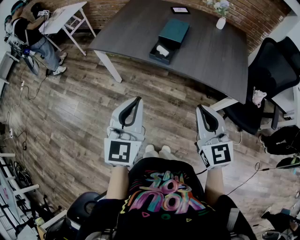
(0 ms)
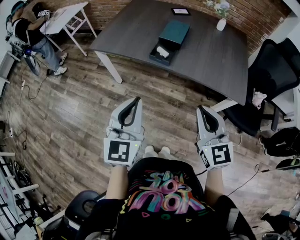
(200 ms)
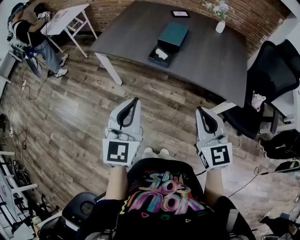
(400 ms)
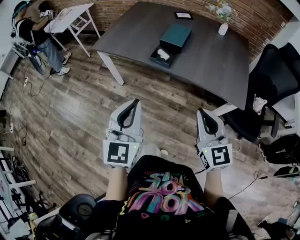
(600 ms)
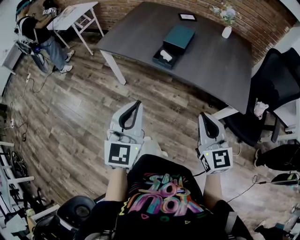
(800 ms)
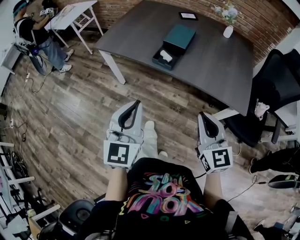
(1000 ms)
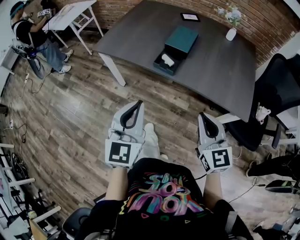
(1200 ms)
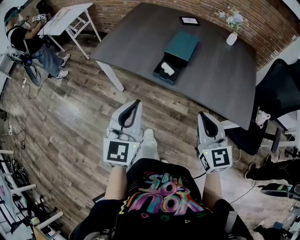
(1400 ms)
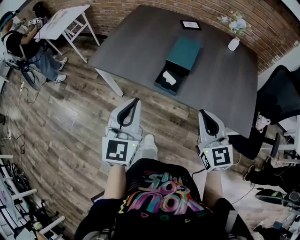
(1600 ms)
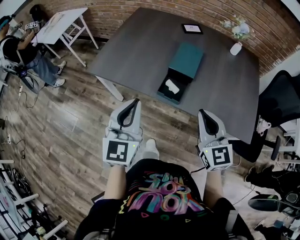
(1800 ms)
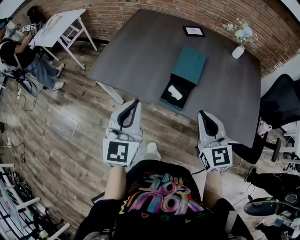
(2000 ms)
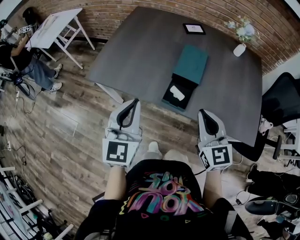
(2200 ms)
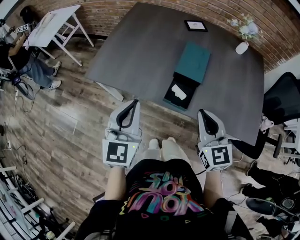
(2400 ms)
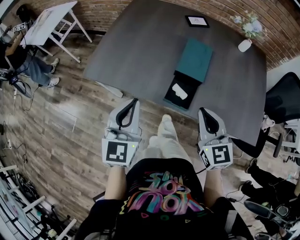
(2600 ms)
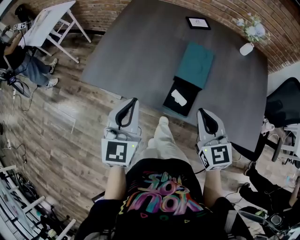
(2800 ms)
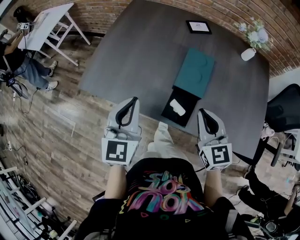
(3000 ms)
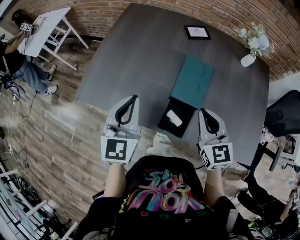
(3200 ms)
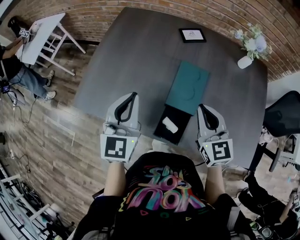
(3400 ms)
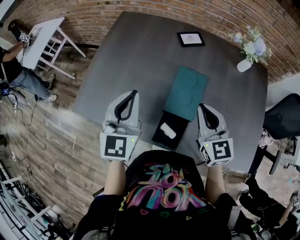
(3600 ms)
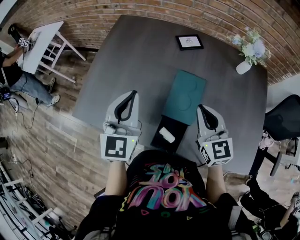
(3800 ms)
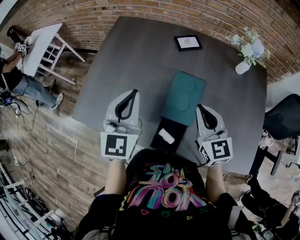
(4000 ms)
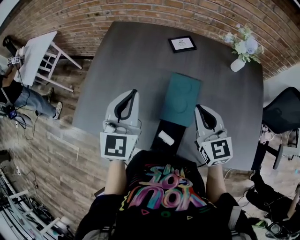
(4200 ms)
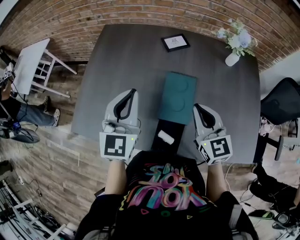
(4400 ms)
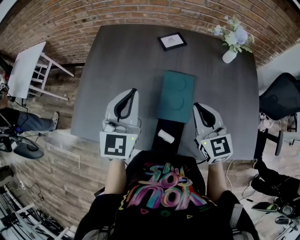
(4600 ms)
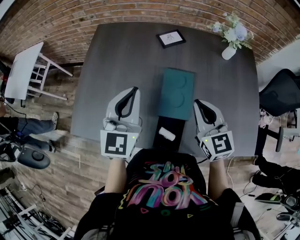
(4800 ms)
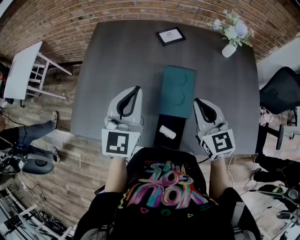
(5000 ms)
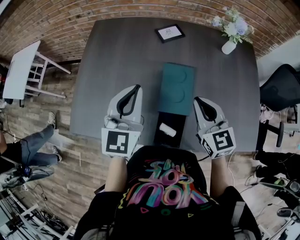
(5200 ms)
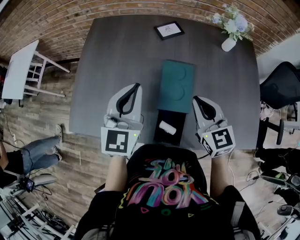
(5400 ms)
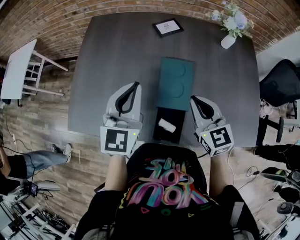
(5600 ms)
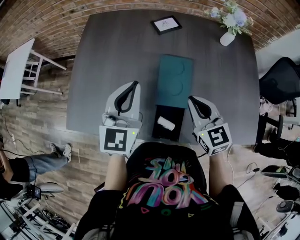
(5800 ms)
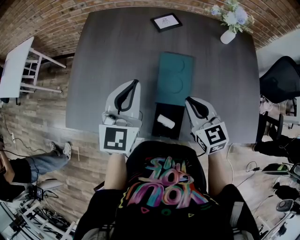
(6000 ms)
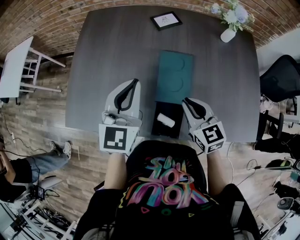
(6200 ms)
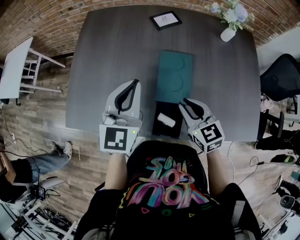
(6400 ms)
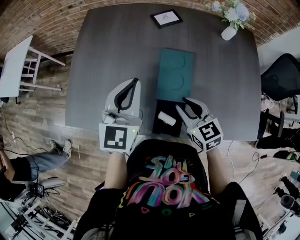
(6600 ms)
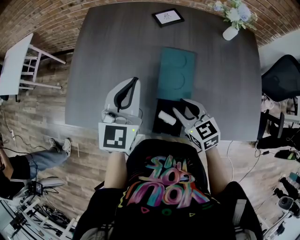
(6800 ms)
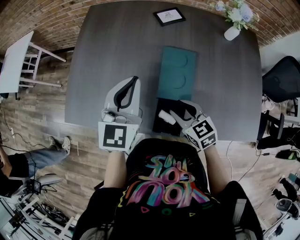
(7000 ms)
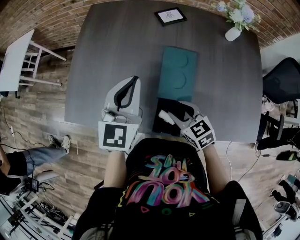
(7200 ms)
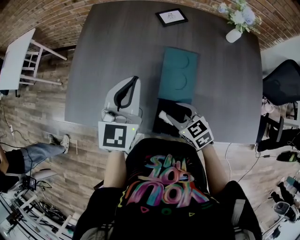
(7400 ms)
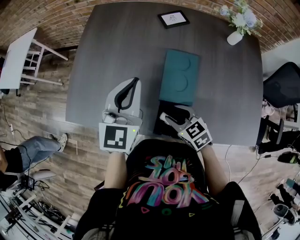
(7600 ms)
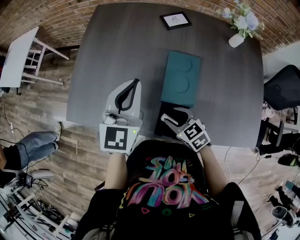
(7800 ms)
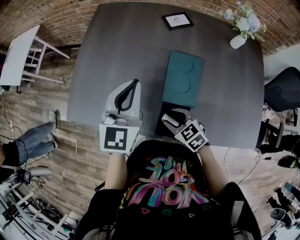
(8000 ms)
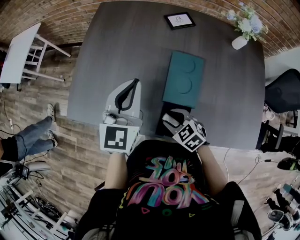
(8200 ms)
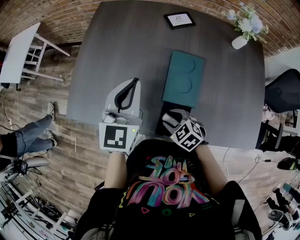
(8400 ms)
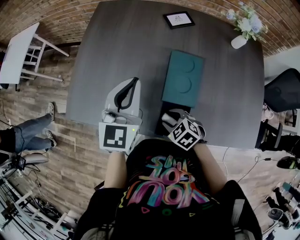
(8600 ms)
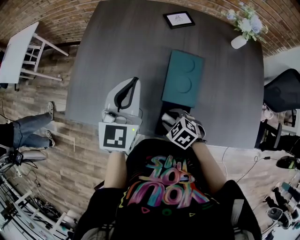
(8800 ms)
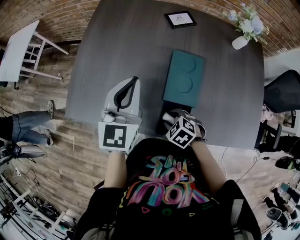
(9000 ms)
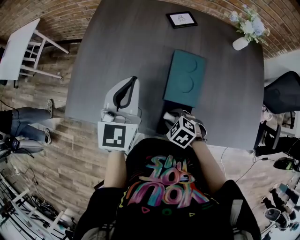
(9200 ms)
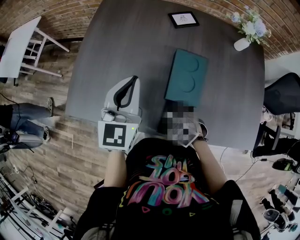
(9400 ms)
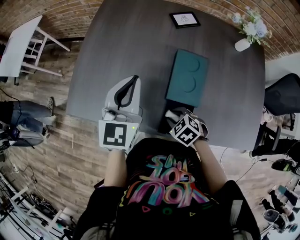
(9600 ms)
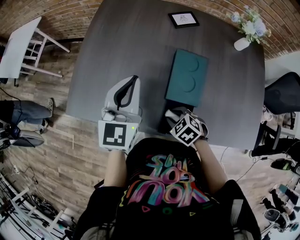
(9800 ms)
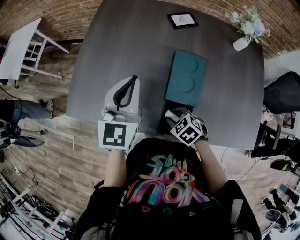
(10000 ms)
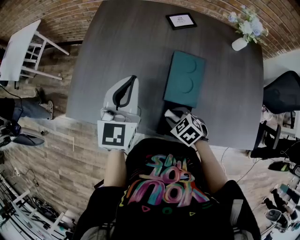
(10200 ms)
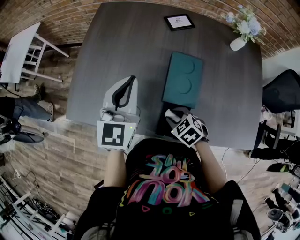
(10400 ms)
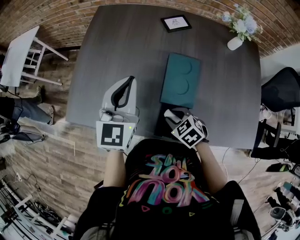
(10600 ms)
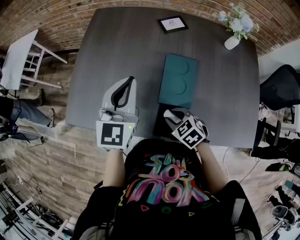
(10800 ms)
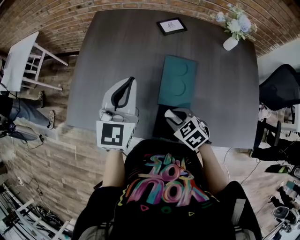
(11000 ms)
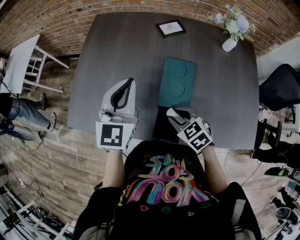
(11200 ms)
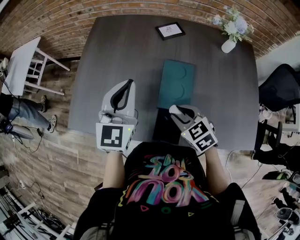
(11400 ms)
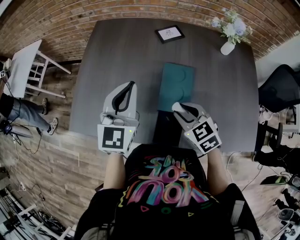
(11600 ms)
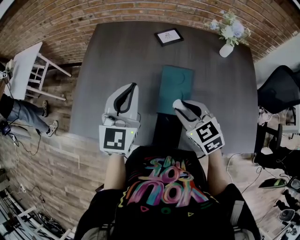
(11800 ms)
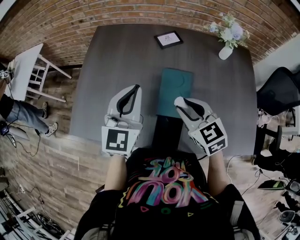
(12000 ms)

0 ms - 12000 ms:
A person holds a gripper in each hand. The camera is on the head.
0 ms - 1600 ms: Both grippers move forward, roughly 20 cm.
1600 ms - 3000 ms: The two grippers go approximately 20 cm forward.
3000 ms - 4400 ms: Both grippers travel together forward and to the right, about 15 cm.
4400 ms - 6000 ms: The right gripper shifts some 5 cm downward.
6000 ms - 7600 ms: The right gripper goes about 15 cm downward and to the left, turns by roughly 30 degrees, and opens.
7600 ms - 9000 ms: The right gripper is displaced downward by some 5 cm, and changes its angle by some 30 degrees.
9000 ms - 10400 ms: The grippers move only a little.
10400 ms - 12000 ms: The right gripper travels upward by some 20 cm, and tips its fingers upward by roughly 30 degrees; the left gripper shifts by some 5 cm.

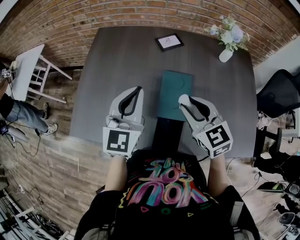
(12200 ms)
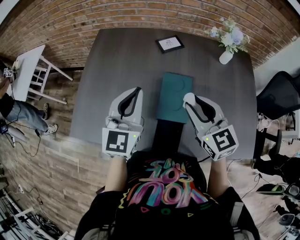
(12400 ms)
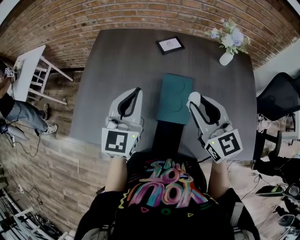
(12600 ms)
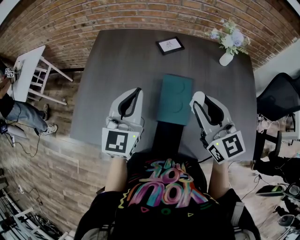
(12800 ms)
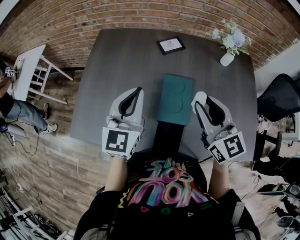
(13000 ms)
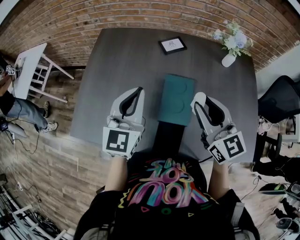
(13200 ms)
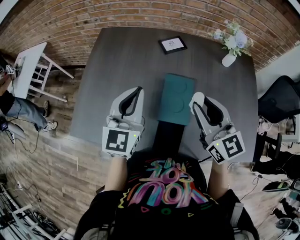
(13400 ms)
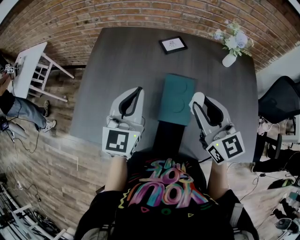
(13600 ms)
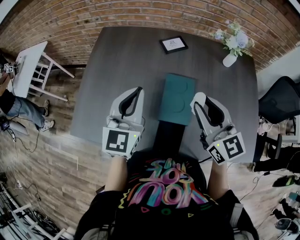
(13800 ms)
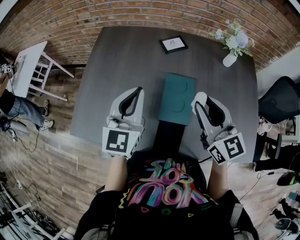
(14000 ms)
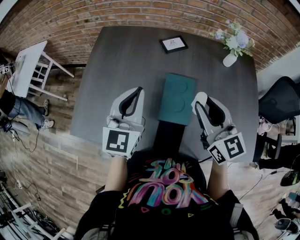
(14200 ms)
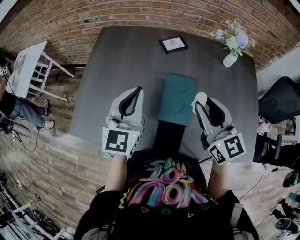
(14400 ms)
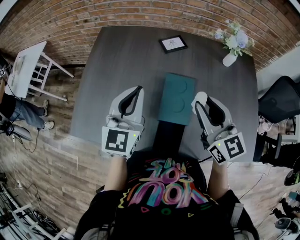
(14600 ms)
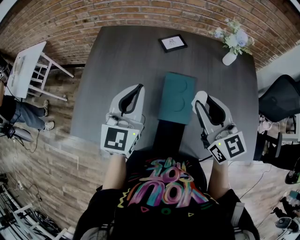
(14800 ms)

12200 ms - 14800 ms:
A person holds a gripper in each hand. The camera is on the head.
12200 ms - 13400 ms: The right gripper travels upward by roughly 5 cm.
13400 ms - 14800 ms: The two grippers keep their place.

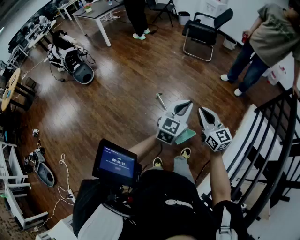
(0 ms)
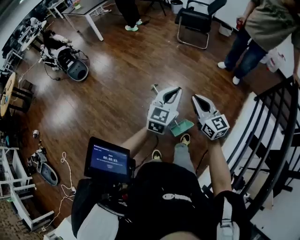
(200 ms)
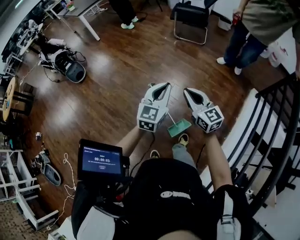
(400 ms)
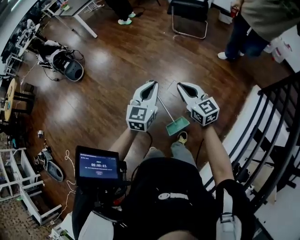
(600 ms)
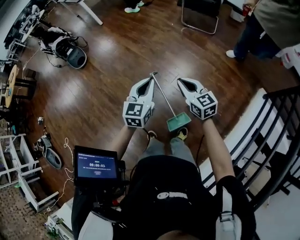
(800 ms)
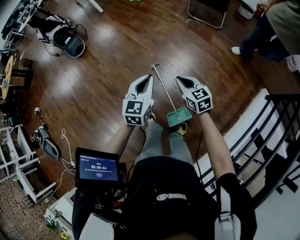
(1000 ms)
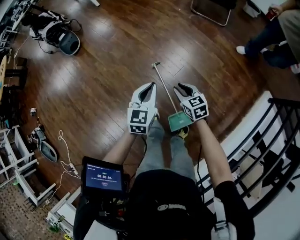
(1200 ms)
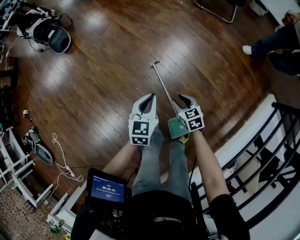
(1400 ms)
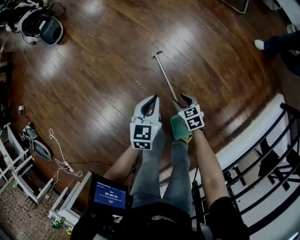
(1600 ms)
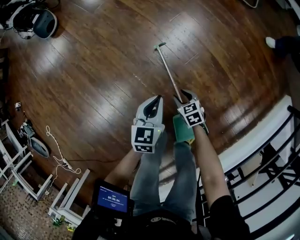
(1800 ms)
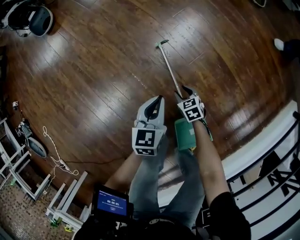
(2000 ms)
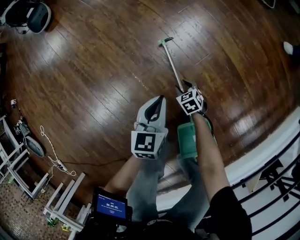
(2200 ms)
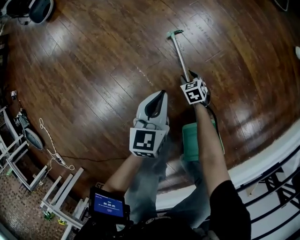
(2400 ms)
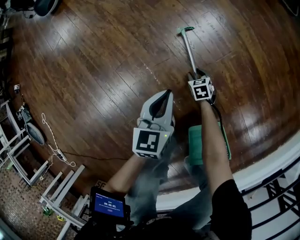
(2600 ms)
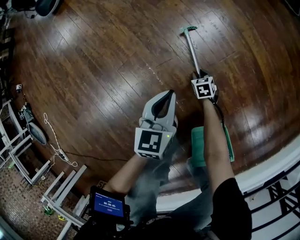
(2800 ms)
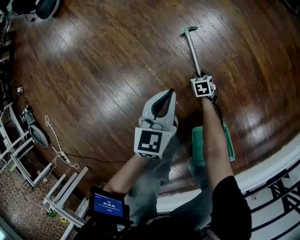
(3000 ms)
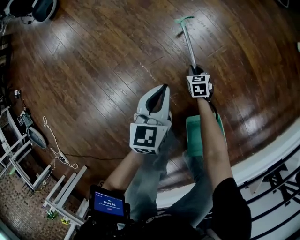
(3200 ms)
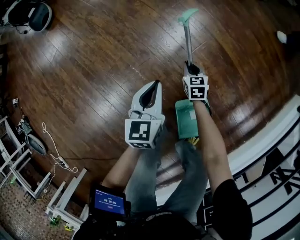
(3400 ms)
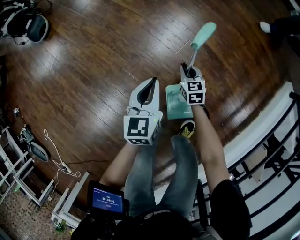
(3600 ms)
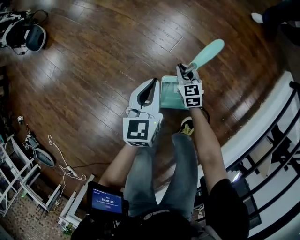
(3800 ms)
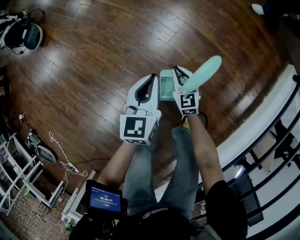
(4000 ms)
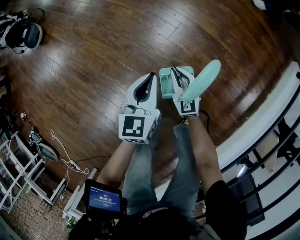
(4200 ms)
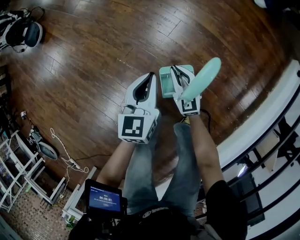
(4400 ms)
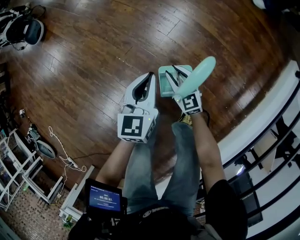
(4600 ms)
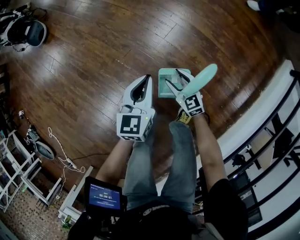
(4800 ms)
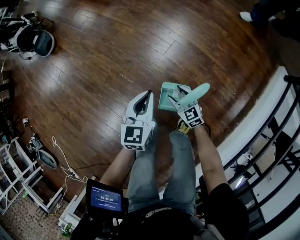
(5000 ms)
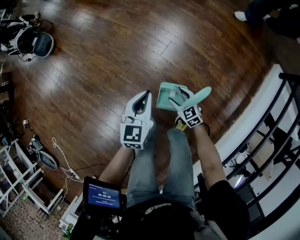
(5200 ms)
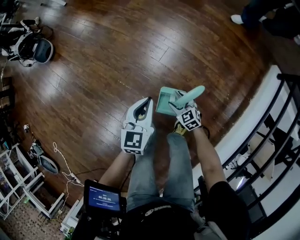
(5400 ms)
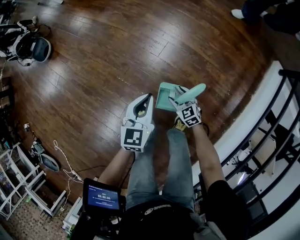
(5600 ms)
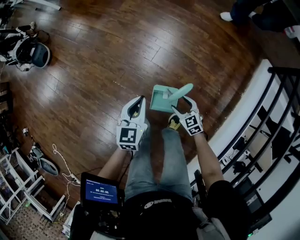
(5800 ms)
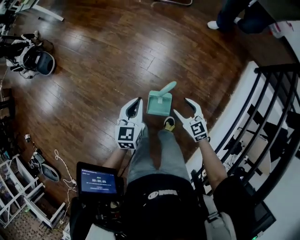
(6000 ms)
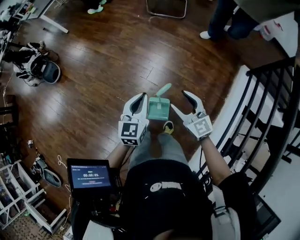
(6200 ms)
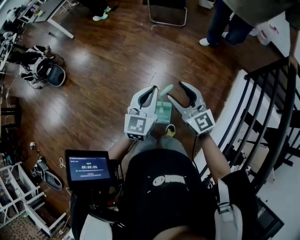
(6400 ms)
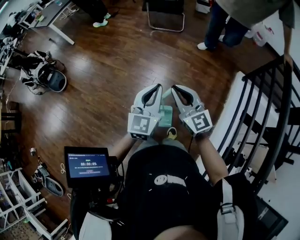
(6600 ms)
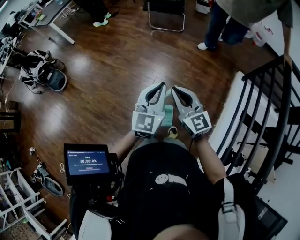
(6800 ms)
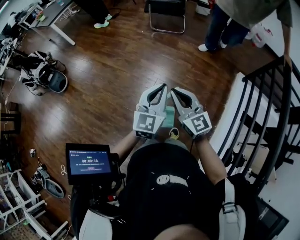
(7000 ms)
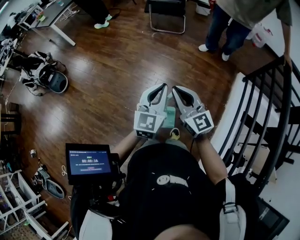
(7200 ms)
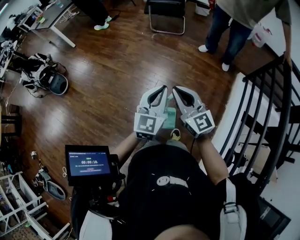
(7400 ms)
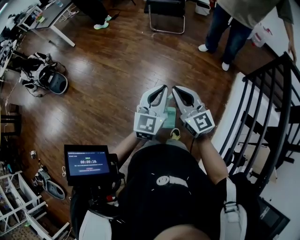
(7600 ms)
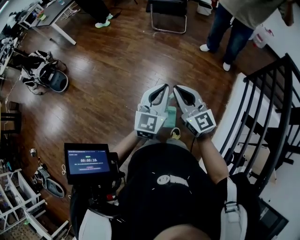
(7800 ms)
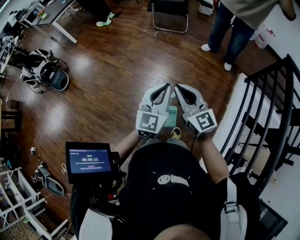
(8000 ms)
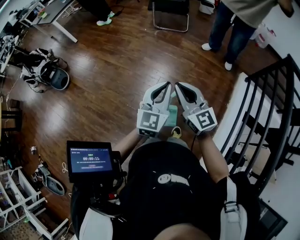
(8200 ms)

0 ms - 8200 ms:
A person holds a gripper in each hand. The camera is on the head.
0 ms - 1600 ms: Both grippers travel together downward, roughly 50 cm. The right gripper tilts its fingers some 50 degrees downward, and opens its fingers, while the left gripper swivels about 40 degrees.
1600 ms - 3200 ms: The right gripper heads downward, covering some 35 cm, and closes; the left gripper shifts roughly 20 cm downward.
3200 ms - 5000 ms: The left gripper heads upward, to the right and backward, covering roughly 30 cm. The right gripper goes roughly 35 cm upward and backward, rotates approximately 30 degrees, and opens up.
5000 ms - 6600 ms: Both grippers move upward, roughly 50 cm. The left gripper turns by about 30 degrees. Meanwhile the right gripper points its fingers approximately 30 degrees further upward, and closes its fingers.
6600 ms - 8200 ms: The grippers move only a little.

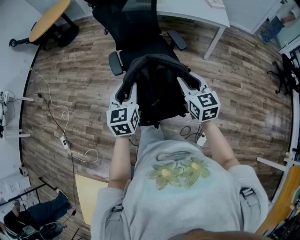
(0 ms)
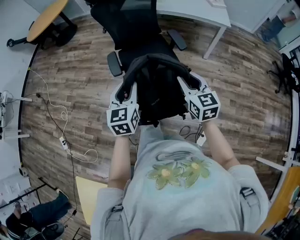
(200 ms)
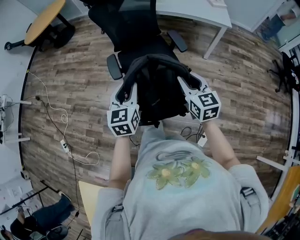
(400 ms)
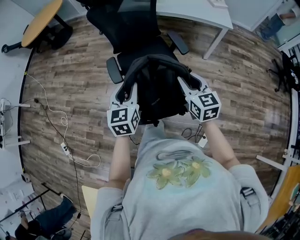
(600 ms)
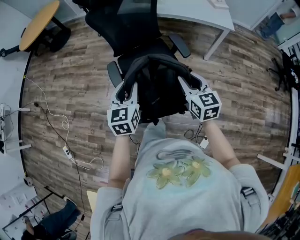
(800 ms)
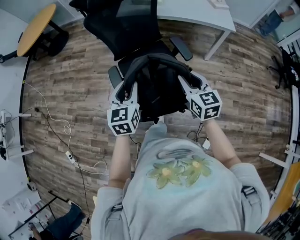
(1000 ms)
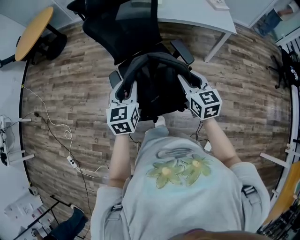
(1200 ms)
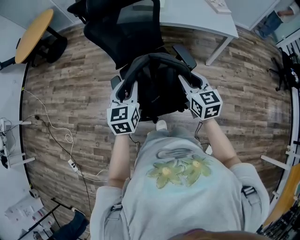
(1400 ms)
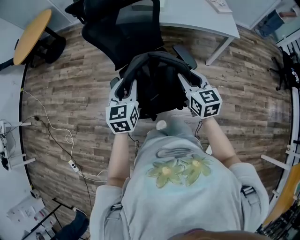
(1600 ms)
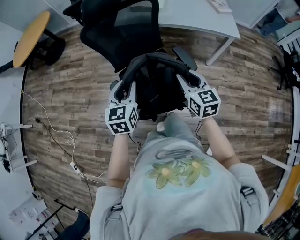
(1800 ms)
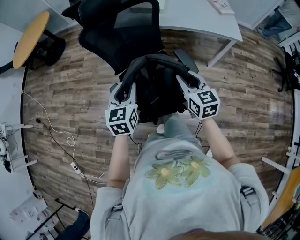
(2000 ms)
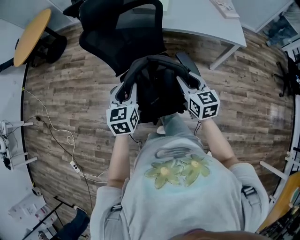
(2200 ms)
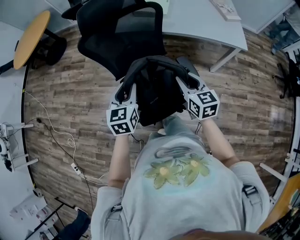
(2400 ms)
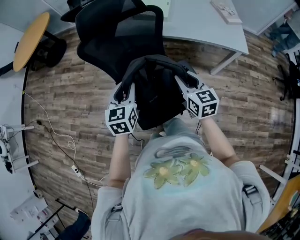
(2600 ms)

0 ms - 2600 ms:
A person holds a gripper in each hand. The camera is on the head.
0 ms - 1200 ms: Both grippers move forward, approximately 20 cm.
1200 ms - 2600 ms: Both grippers travel together forward, roughly 20 cm.
